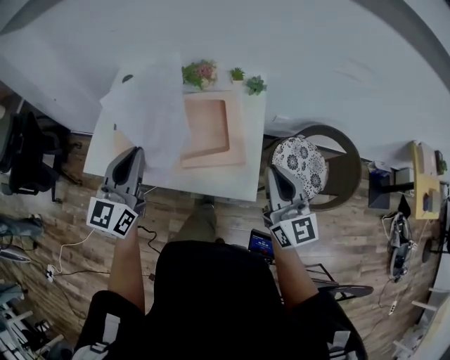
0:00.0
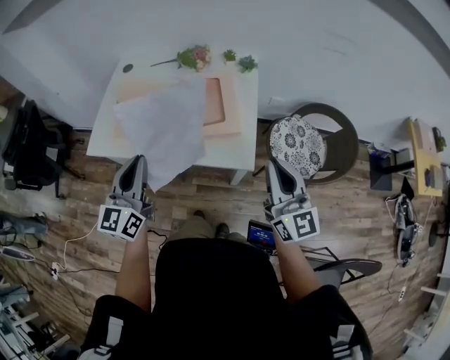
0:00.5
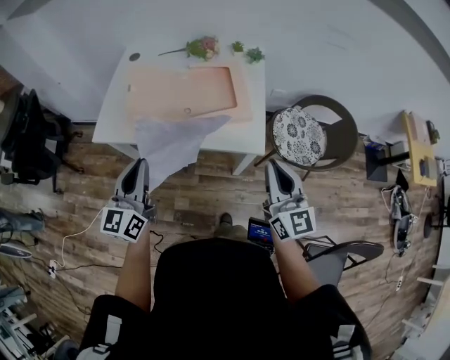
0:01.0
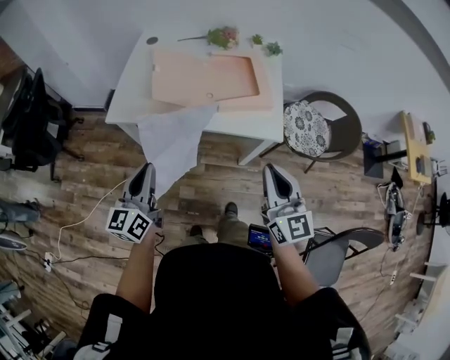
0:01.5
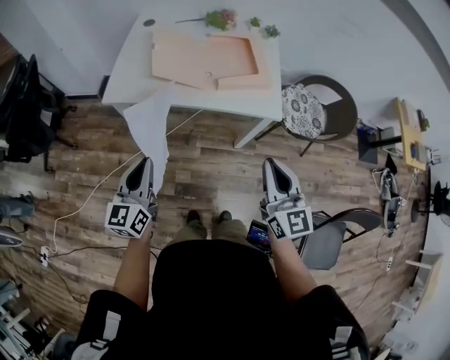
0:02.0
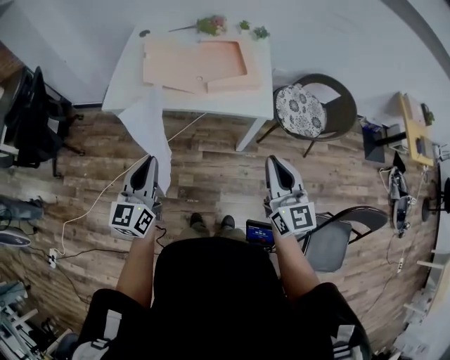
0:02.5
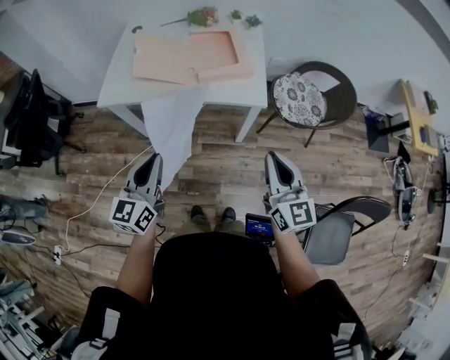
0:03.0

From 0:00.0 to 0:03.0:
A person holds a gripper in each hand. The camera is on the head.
From 0:00.0 to 0:01.5: The left gripper shifts about 30 cm backward, to the left and downward, and changes its angle by about 20 degrees, while the right gripper travels backward and to the left by about 30 cm.
From 0:01.5 to 0:03.0: The right gripper travels backward and to the right by roughly 10 cm. Meanwhile the left gripper heads to the right and backward, covering some 15 cm.

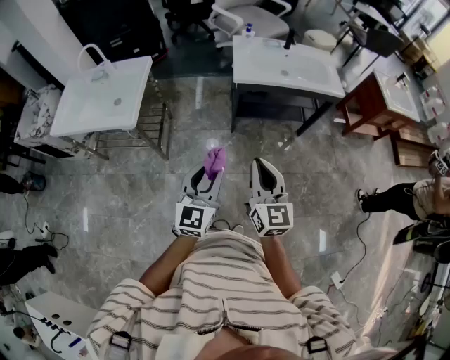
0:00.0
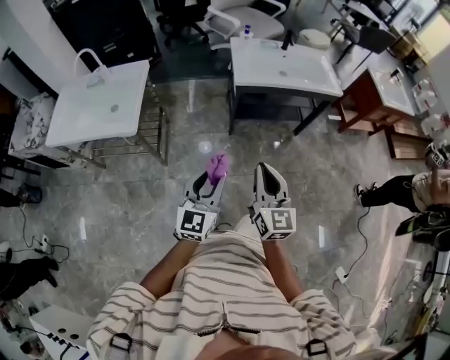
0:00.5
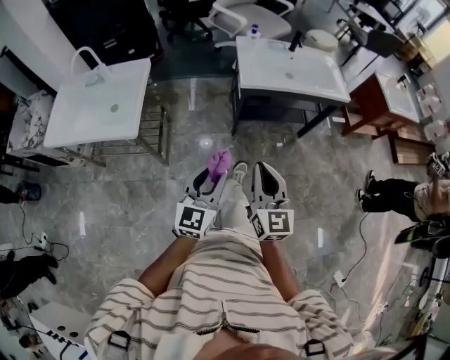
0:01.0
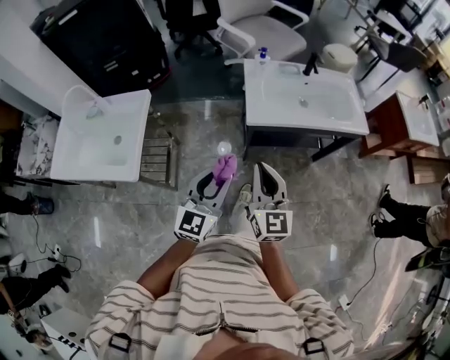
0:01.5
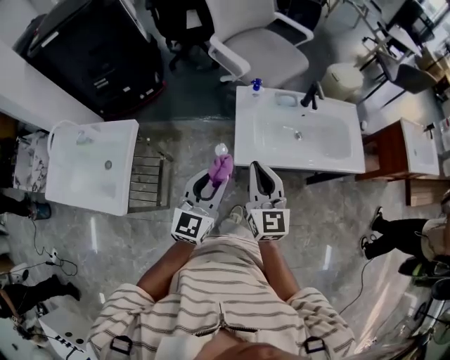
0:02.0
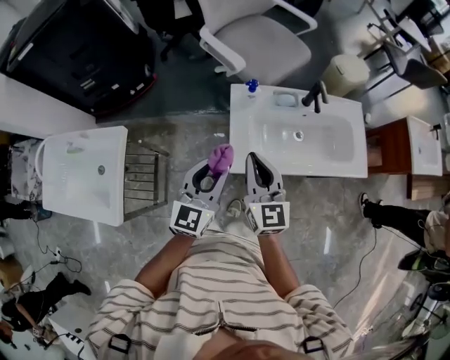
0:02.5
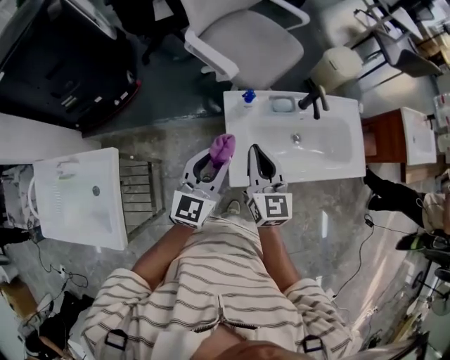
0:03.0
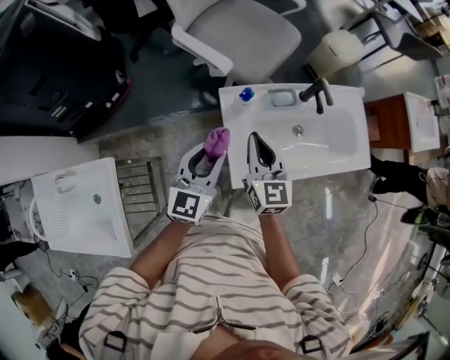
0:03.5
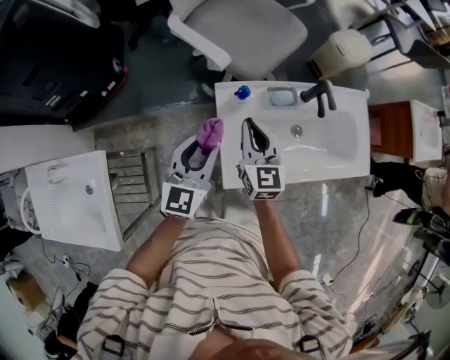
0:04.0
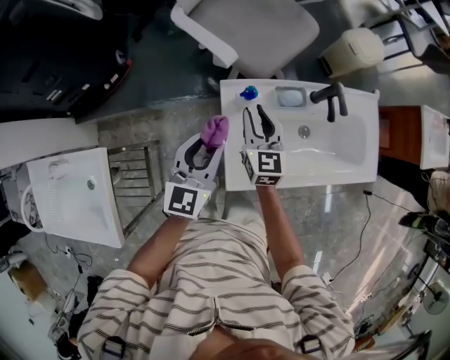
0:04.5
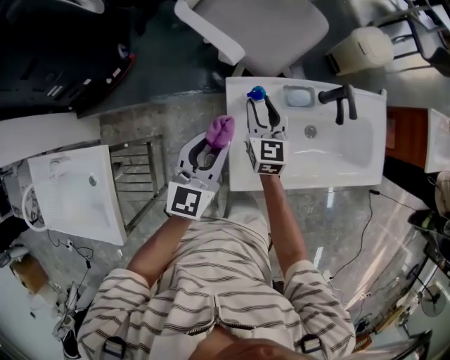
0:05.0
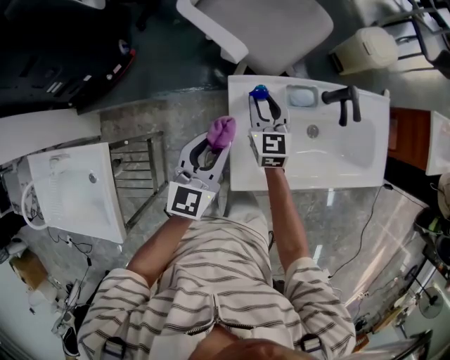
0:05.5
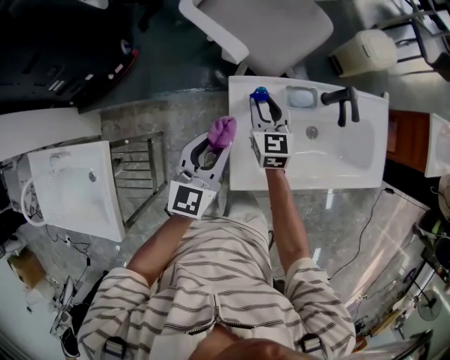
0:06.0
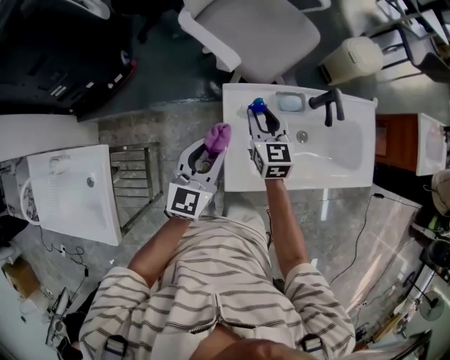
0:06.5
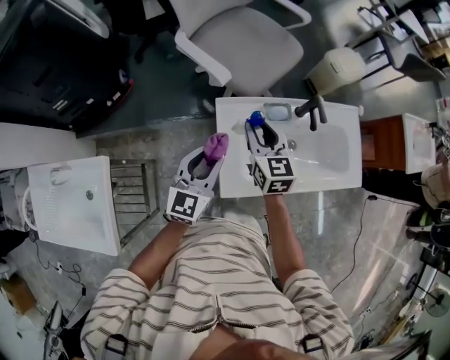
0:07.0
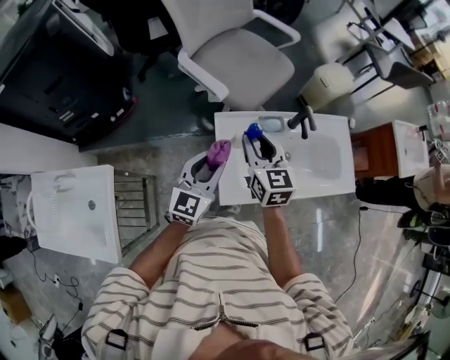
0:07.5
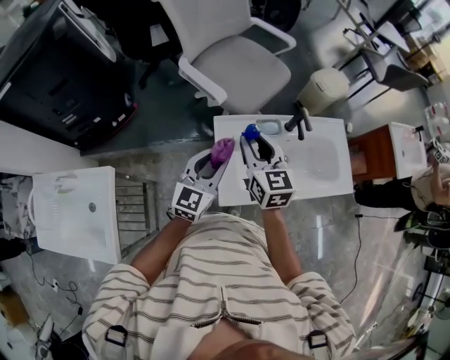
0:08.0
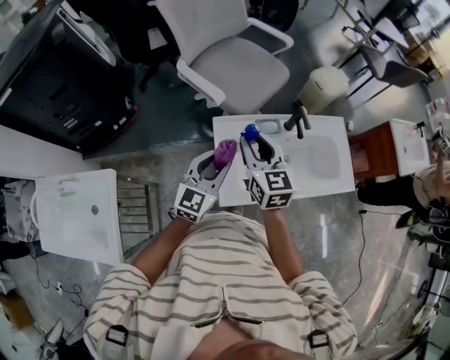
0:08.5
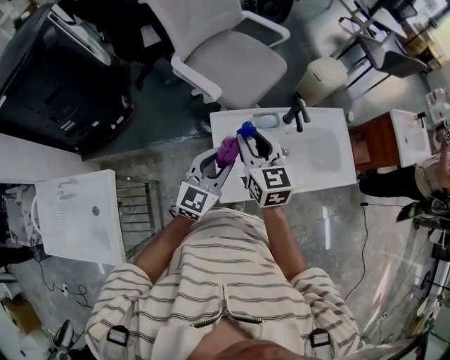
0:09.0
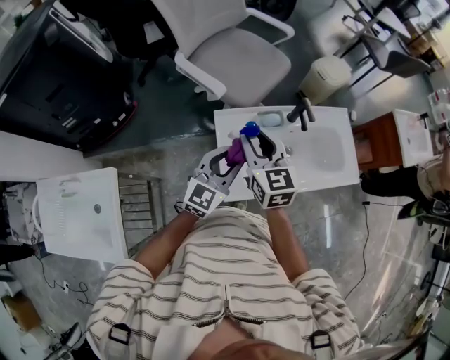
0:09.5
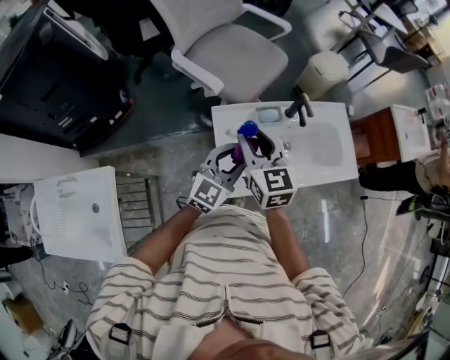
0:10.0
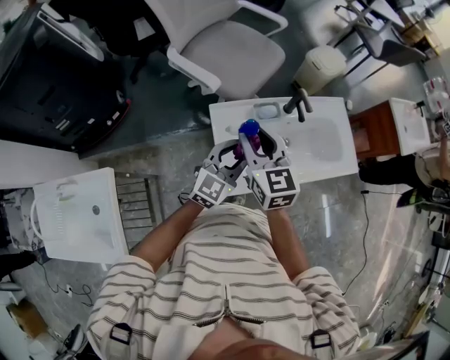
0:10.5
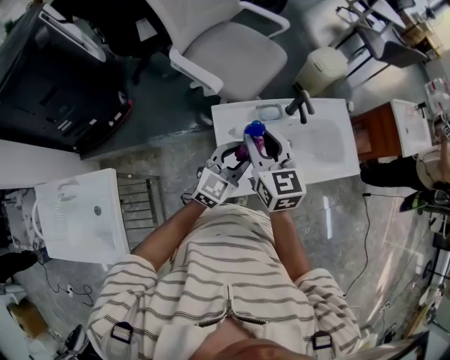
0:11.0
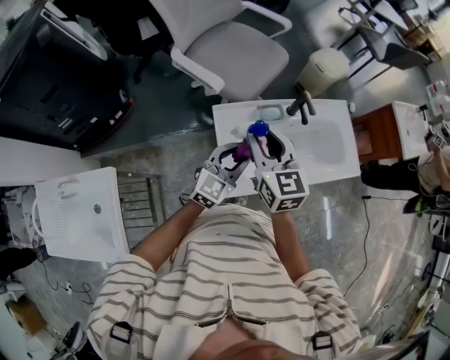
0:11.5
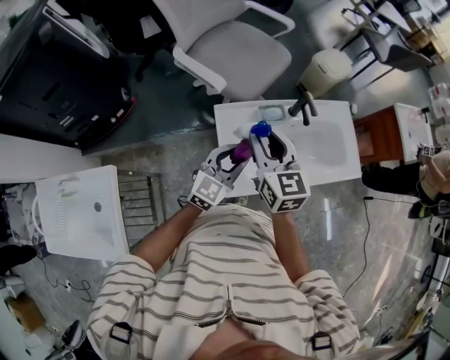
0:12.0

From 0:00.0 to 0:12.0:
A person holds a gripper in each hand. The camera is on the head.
From 0:00.0 to 0:02.0: Both grippers are carried forward, approximately 50 cm.
From 0:02.0 to 0:04.0: The two grippers go some 30 cm forward.
From 0:04.0 to 0:06.0: The right gripper is displaced forward and downward by approximately 10 cm, and opens.
From 0:06.0 to 0:08.0: The right gripper goes roughly 25 cm upward and backward, while the left gripper shifts about 10 cm upward.
From 0:08.0 to 0:10.0: The left gripper shifts some 5 cm to the right.
From 0:10.0 to 0:12.0: There are only small adjustments of the grippers.

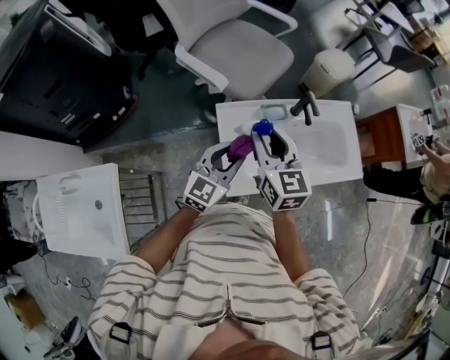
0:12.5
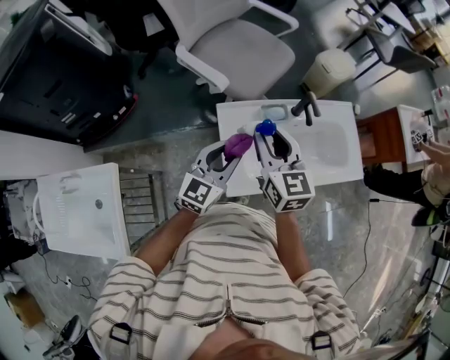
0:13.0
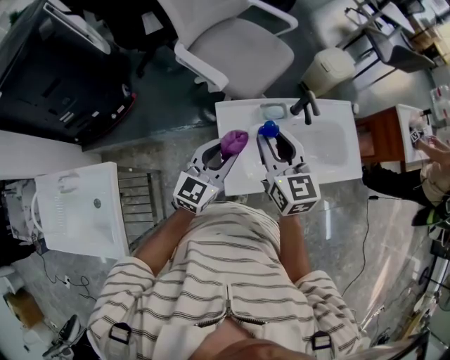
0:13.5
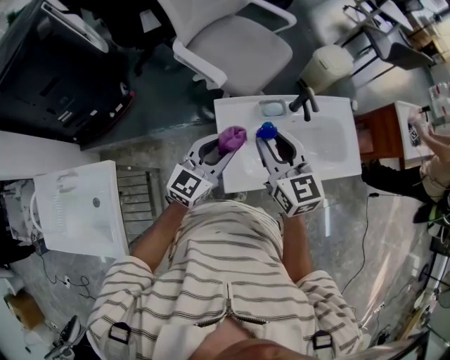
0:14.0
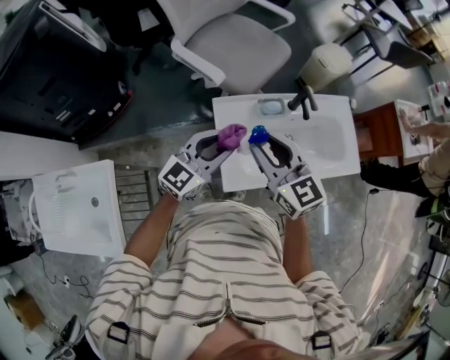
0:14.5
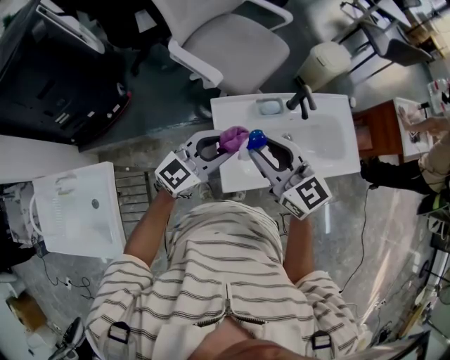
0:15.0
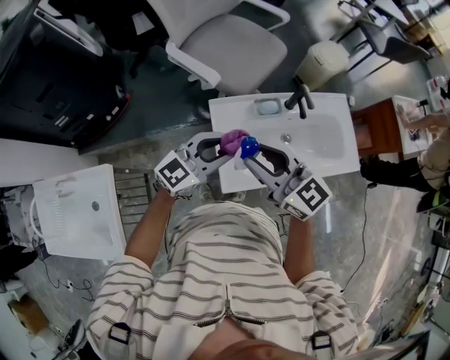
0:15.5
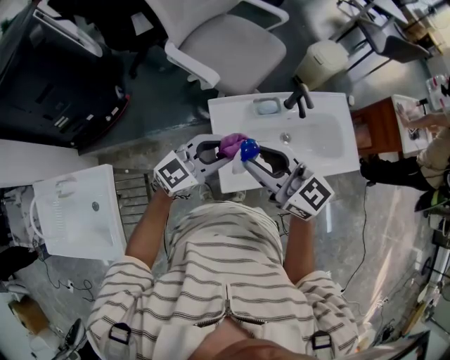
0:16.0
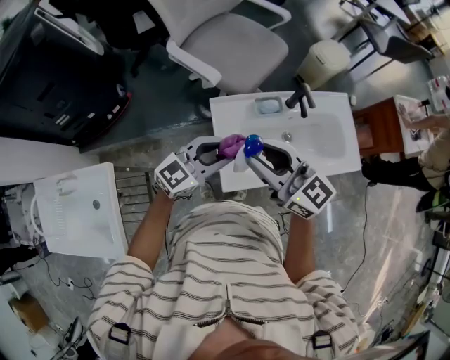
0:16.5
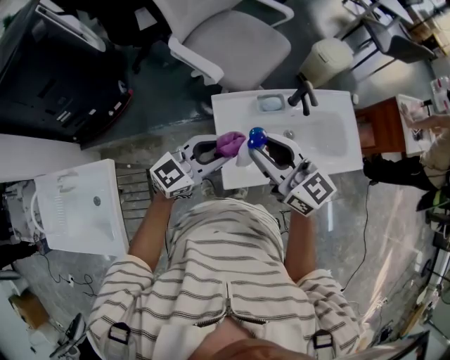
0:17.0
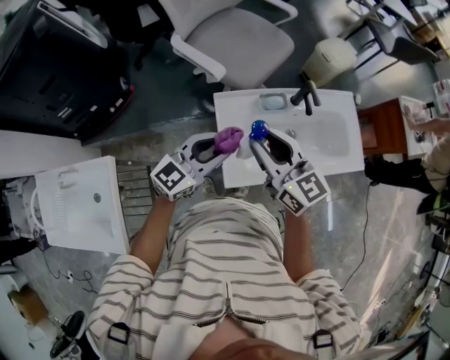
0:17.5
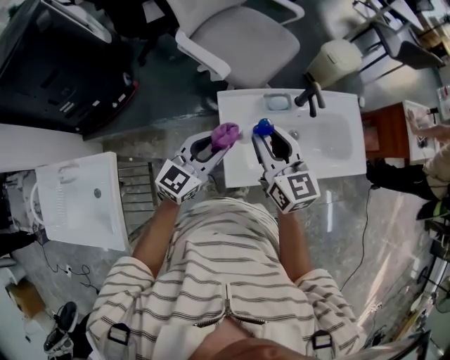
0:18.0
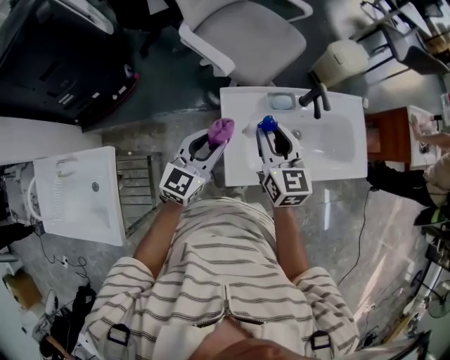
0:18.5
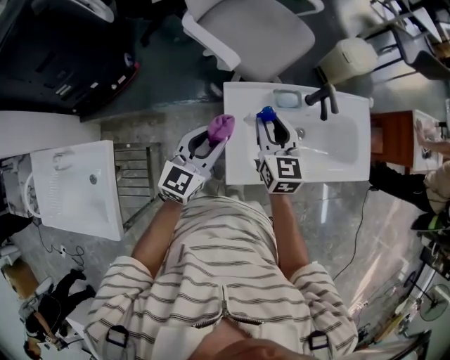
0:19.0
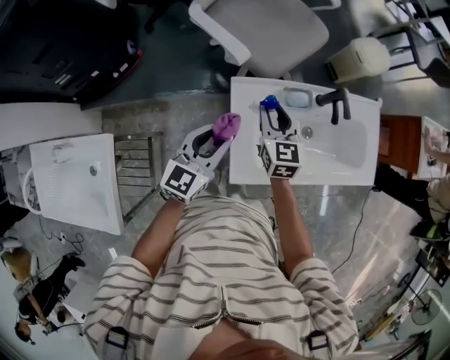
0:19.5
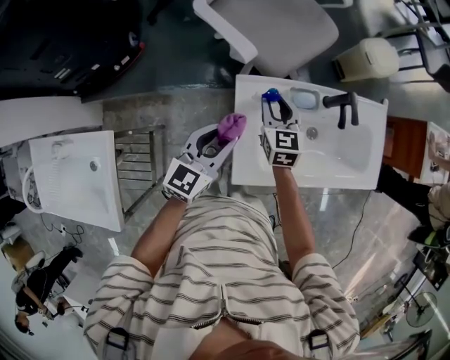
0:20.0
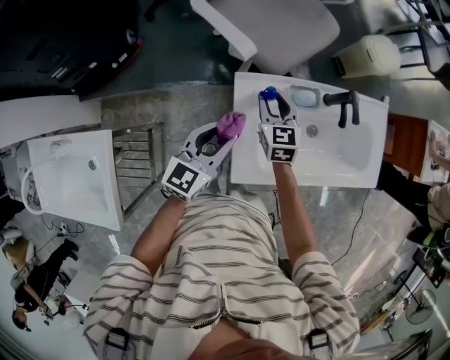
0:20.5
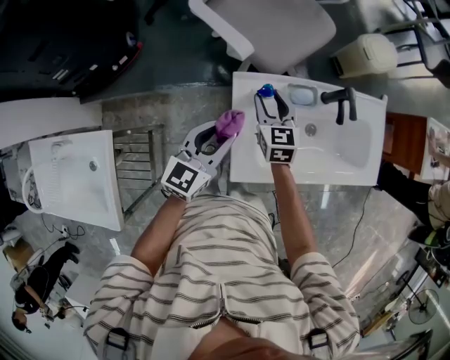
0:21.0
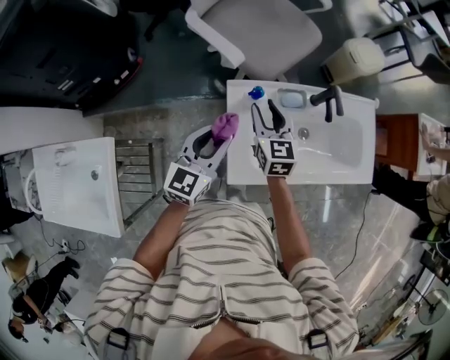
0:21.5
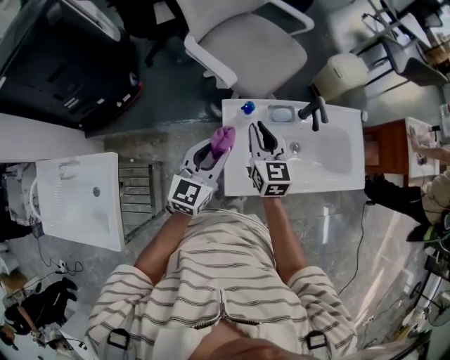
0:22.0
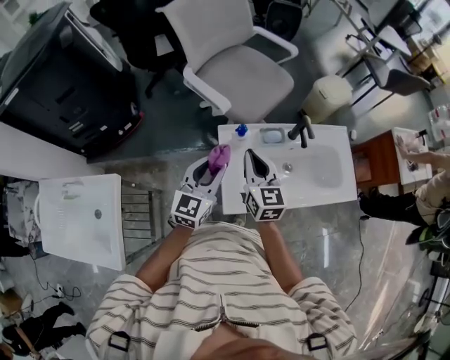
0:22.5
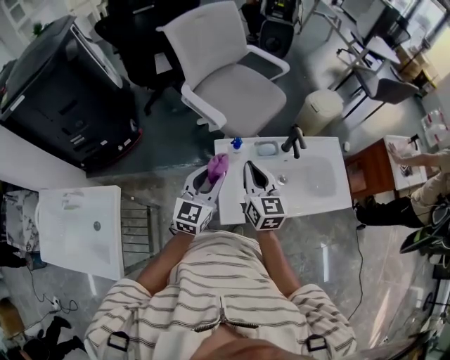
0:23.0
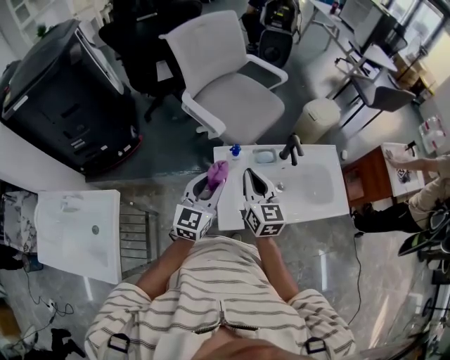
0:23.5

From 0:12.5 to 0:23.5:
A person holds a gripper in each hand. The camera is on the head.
From 0:12.5 to 0:14.5: The grippers make only small movements.
From 0:14.5 to 0:16.0: There are only small adjustments of the grippers.
From 0:16.0 to 0:18.0: The right gripper shifts about 5 cm forward, and swivels some 30 degrees, while the left gripper turns by some 20 degrees.
From 0:18.0 to 0:20.0: The left gripper is displaced downward by about 5 cm. Meanwhile the right gripper travels downward and forward by some 25 cm.
From 0:20.0 to 0:21.5: The right gripper is displaced upward by some 5 cm.
From 0:21.5 to 0:23.5: The right gripper is displaced upward and backward by roughly 15 cm, and closes. Meanwhile the left gripper is displaced upward by roughly 5 cm.

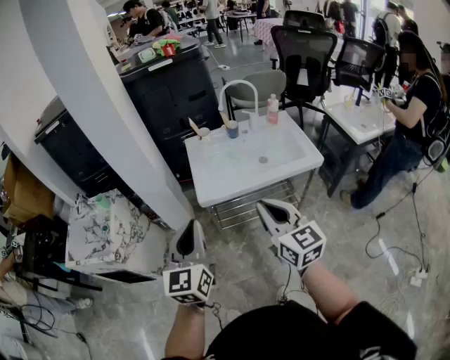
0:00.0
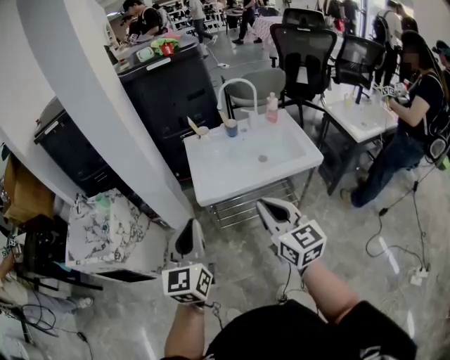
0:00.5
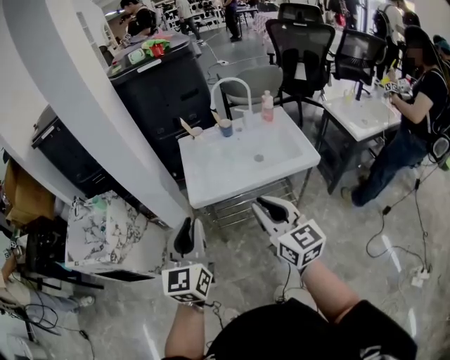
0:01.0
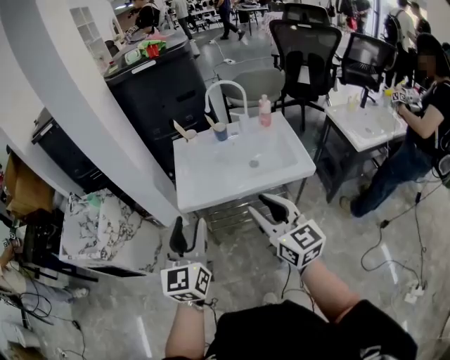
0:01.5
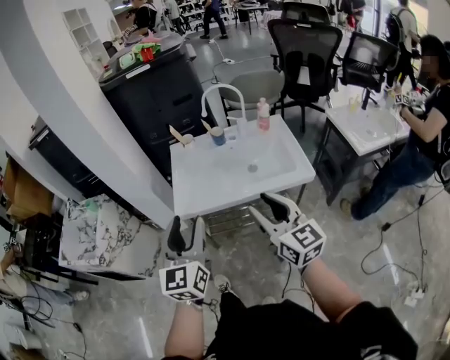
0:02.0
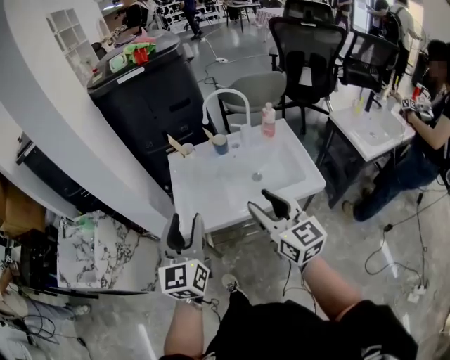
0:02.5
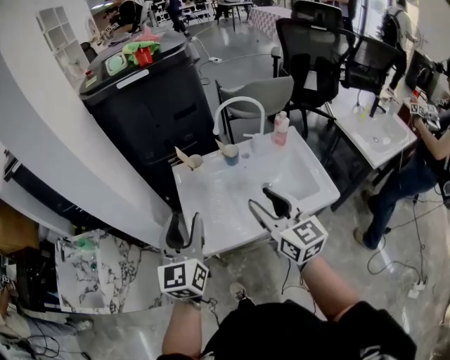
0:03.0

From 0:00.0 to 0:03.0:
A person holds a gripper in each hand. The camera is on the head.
From 0:00.0 to 0:01.5: The grippers both shift to the right by roughly 15 cm. The left gripper opens. Meanwhile the right gripper opens its fingers.
From 0:01.5 to 0:03.0: Both grippers travel together forward, some 30 cm.
